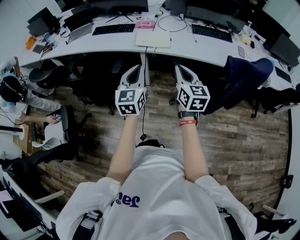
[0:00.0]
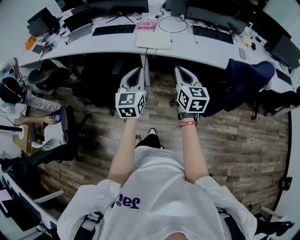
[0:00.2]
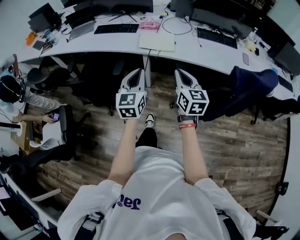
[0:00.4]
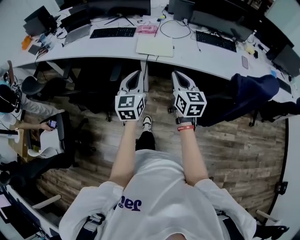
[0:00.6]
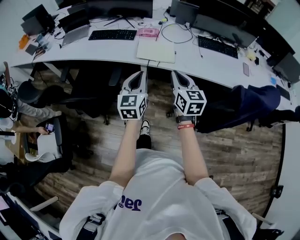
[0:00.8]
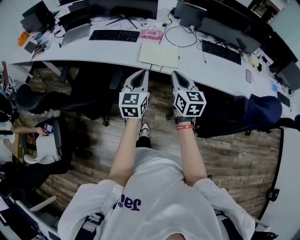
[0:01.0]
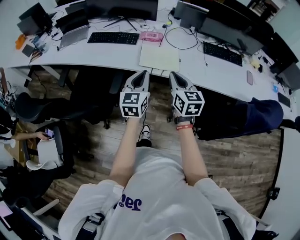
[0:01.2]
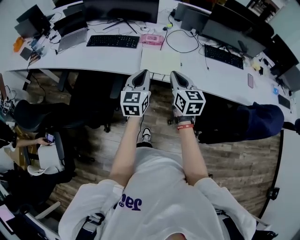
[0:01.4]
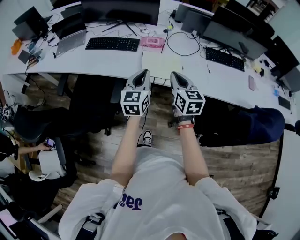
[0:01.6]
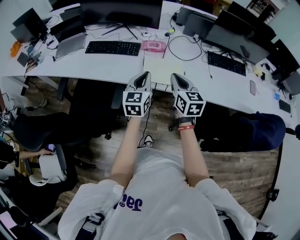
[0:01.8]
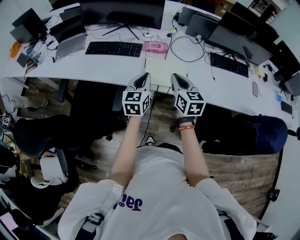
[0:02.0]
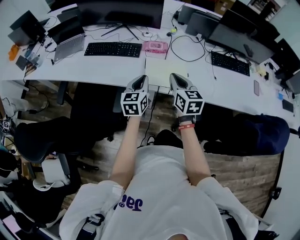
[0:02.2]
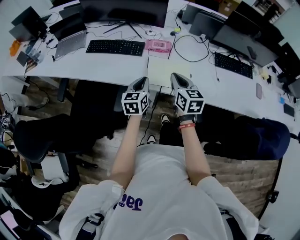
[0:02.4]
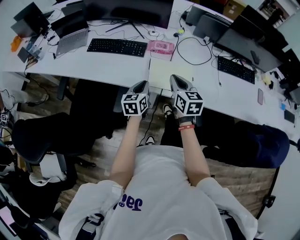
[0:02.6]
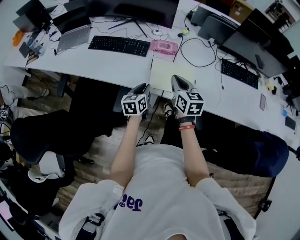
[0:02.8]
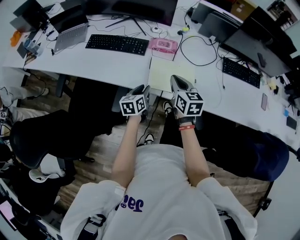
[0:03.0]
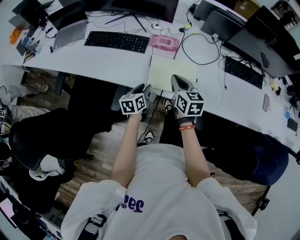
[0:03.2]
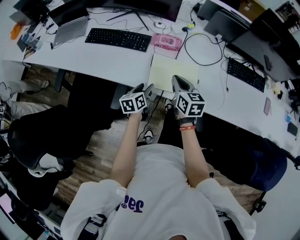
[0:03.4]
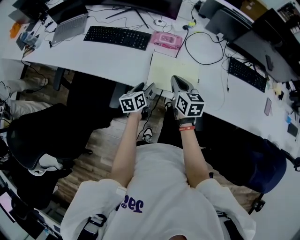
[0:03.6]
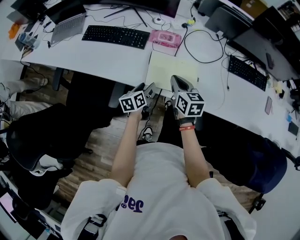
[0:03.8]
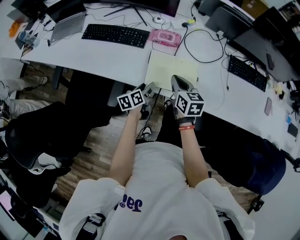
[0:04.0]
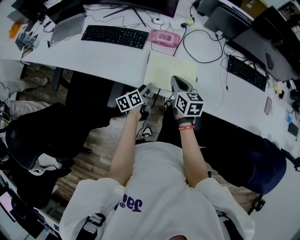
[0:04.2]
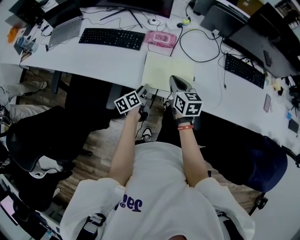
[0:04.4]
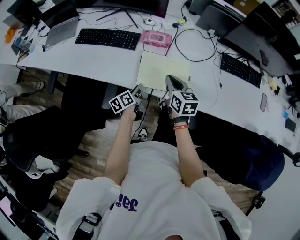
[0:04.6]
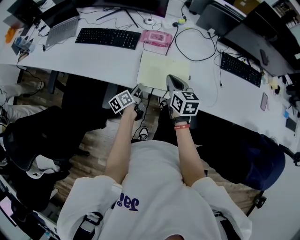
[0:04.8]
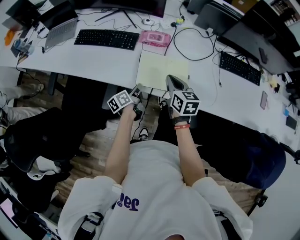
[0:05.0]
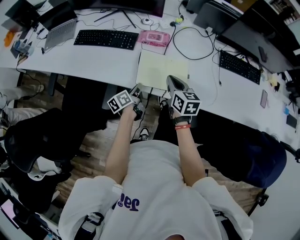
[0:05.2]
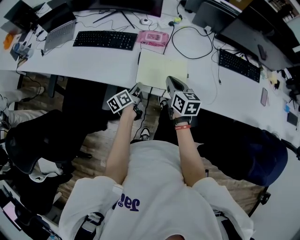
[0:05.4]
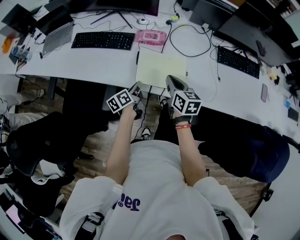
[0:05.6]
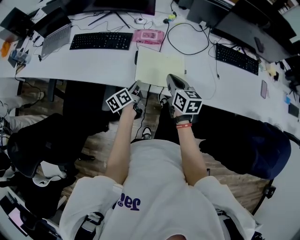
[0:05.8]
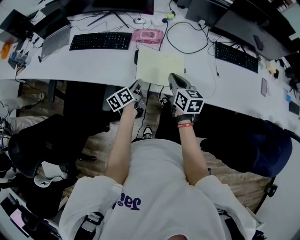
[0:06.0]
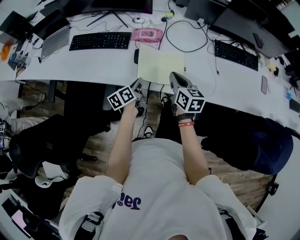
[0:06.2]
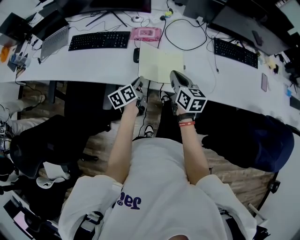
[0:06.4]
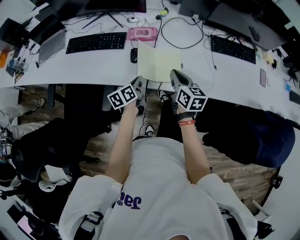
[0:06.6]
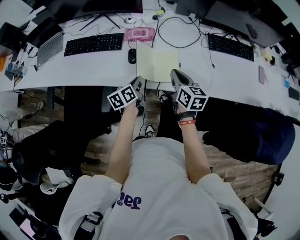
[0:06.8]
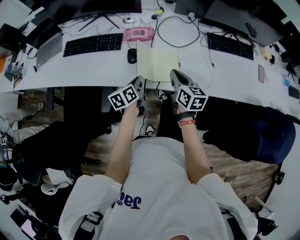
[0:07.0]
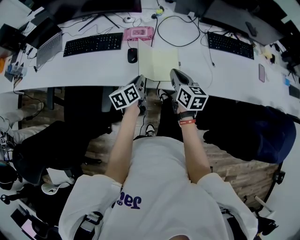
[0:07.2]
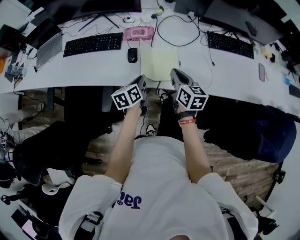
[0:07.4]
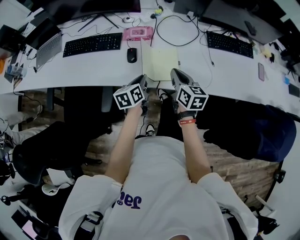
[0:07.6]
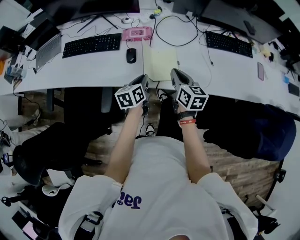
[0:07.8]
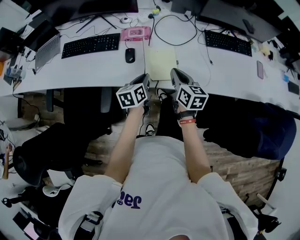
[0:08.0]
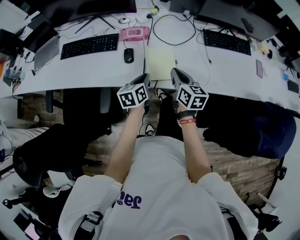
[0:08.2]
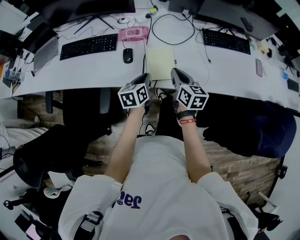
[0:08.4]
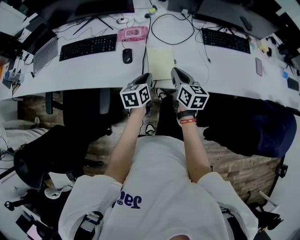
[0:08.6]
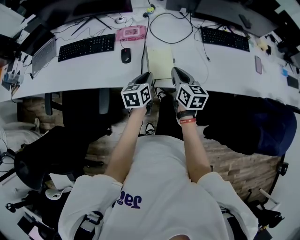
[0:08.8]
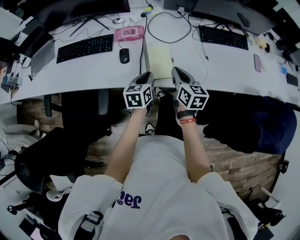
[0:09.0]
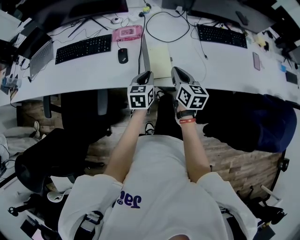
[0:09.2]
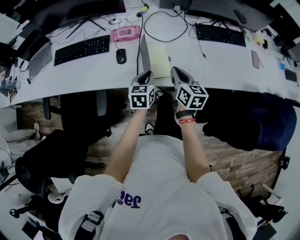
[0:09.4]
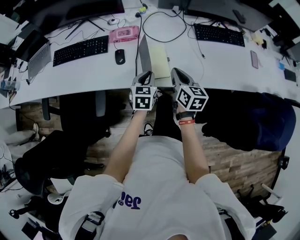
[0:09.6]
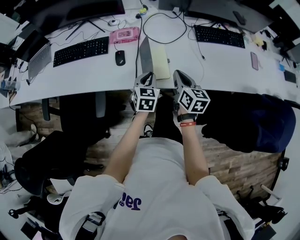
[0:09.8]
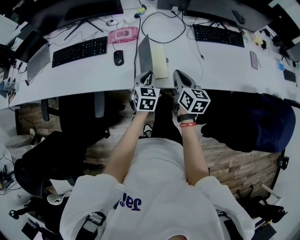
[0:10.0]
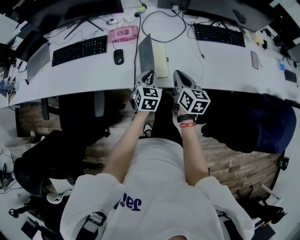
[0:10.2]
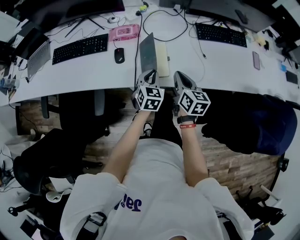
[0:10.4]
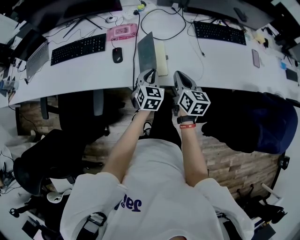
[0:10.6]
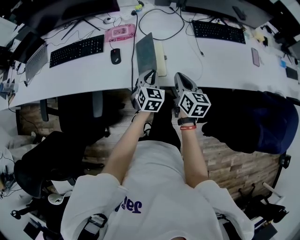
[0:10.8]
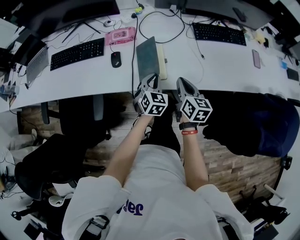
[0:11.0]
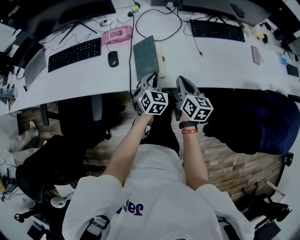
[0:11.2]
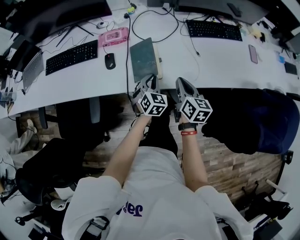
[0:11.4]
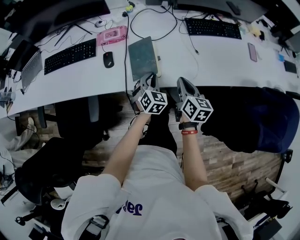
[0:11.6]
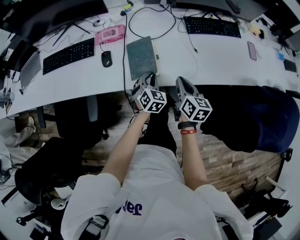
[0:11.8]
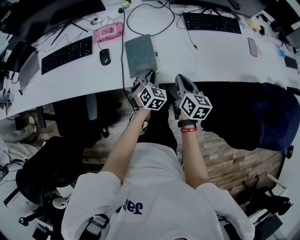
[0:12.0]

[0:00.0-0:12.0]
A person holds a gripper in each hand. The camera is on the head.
0:00.0 to 0:01.6: Both grippers move forward, roughly 40 cm.
0:01.6 to 0:03.0: The right gripper travels forward and downward by approximately 20 cm. Meanwhile the left gripper shifts approximately 25 cm downward and forward, swivels roughly 30 degrees, and opens.
0:03.0 to 0:04.4: Both grippers travel together downward, about 5 cm. The left gripper swivels roughly 30 degrees, and opens, then closes again.
0:04.4 to 0:06.0: The right gripper moves roughly 5 cm. Meanwhile the left gripper closes its fingers.
0:06.0 to 0:07.6: The left gripper is displaced to the right by some 5 cm, and rotates about 20 degrees.
0:07.6 to 0:09.0: The left gripper shifts about 5 cm to the right.
0:09.0 to 0:10.4: The left gripper changes place by about 5 cm, and swivels some 30 degrees.
0:10.4 to 0:12.0: The right gripper moves to the right, roughly 5 cm; the left gripper travels downward and to the right by about 10 cm.

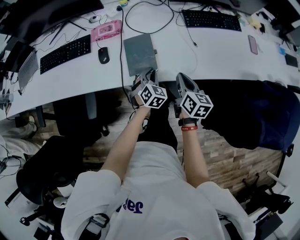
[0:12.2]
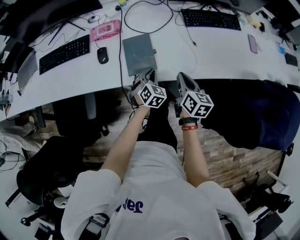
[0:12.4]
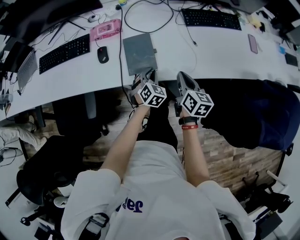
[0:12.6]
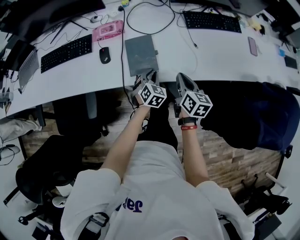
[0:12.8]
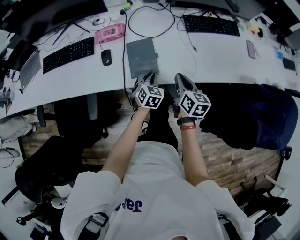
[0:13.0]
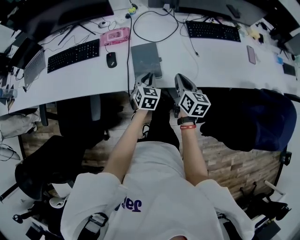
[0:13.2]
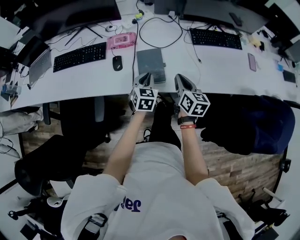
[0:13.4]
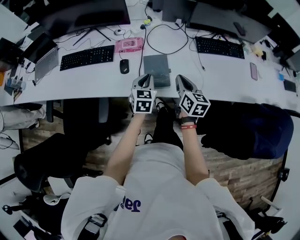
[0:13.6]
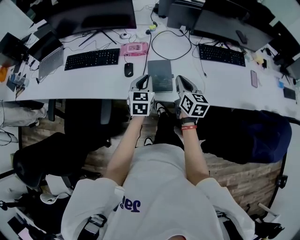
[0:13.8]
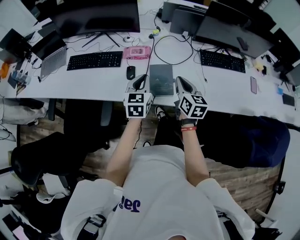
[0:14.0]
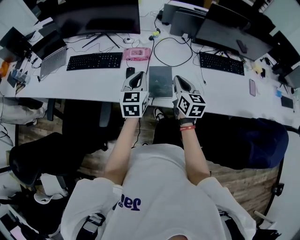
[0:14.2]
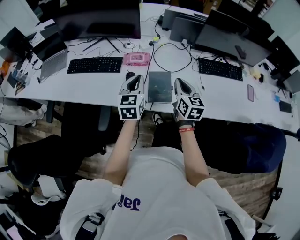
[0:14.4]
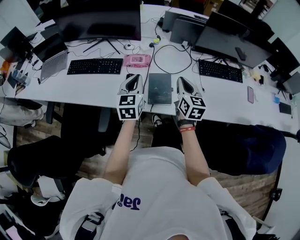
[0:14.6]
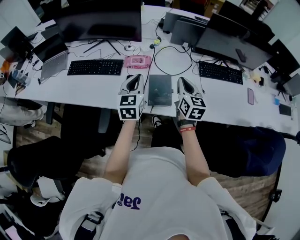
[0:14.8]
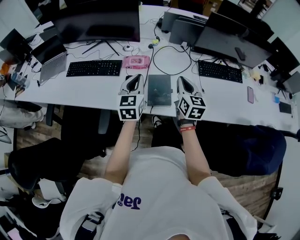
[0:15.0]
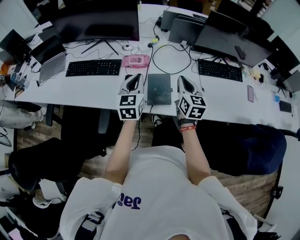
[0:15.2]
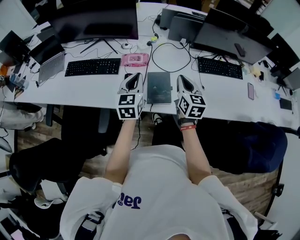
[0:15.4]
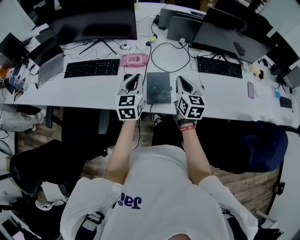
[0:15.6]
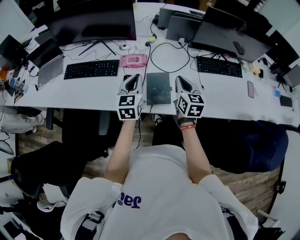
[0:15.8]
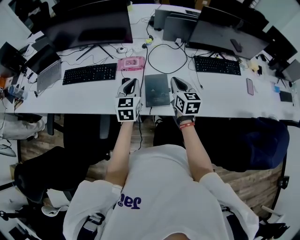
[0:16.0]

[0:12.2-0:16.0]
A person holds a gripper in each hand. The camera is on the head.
0:12.2 to 0:13.4: The right gripper is displaced upward by roughly 5 cm, while the left gripper goes some 10 cm upward and to the left, and changes its angle by some 20 degrees.
0:13.4 to 0:14.8: The right gripper shifts some 15 cm upward, forward and to the left; the left gripper goes about 20 cm upward and to the left, and rotates some 20 degrees.
0:14.8 to 0:16.0: There are only small adjustments of the grippers.

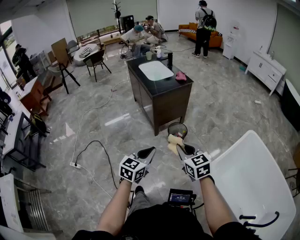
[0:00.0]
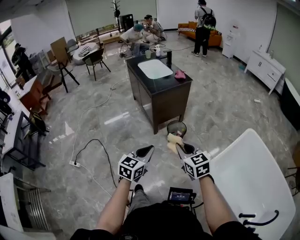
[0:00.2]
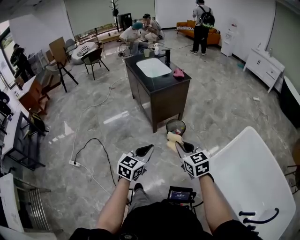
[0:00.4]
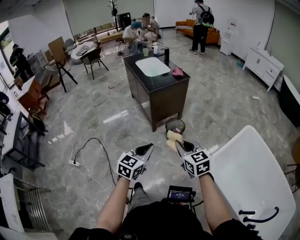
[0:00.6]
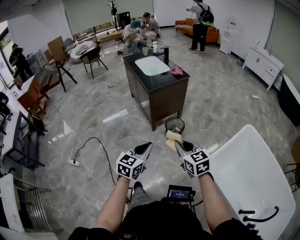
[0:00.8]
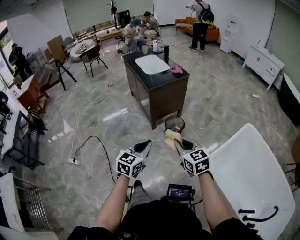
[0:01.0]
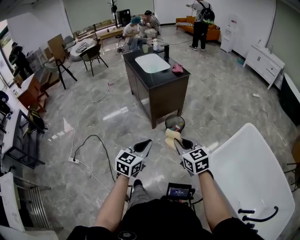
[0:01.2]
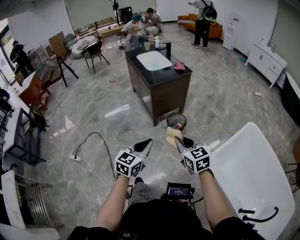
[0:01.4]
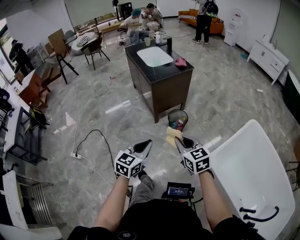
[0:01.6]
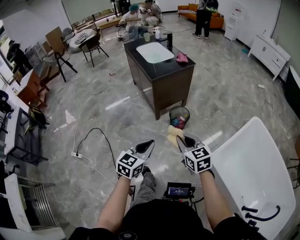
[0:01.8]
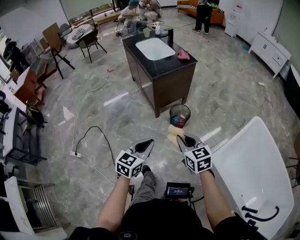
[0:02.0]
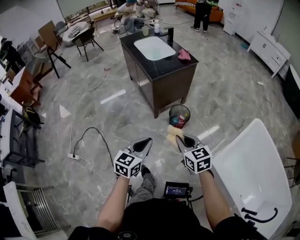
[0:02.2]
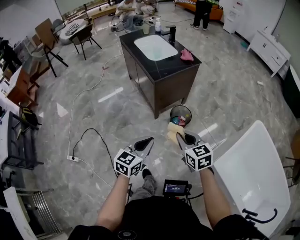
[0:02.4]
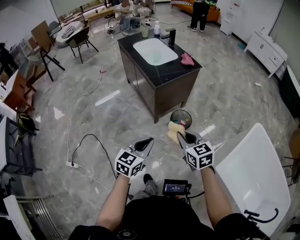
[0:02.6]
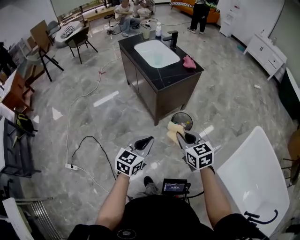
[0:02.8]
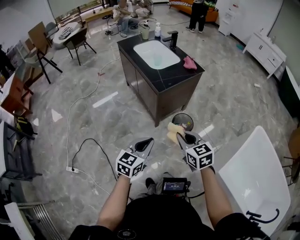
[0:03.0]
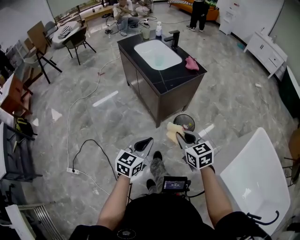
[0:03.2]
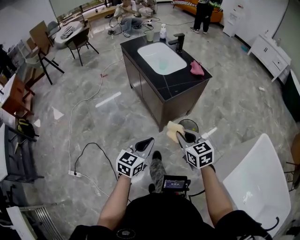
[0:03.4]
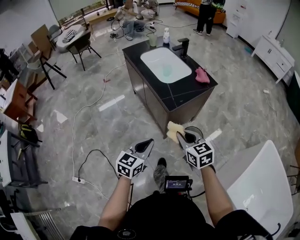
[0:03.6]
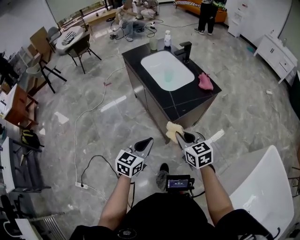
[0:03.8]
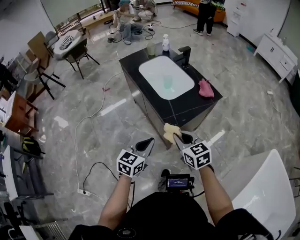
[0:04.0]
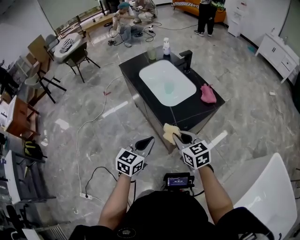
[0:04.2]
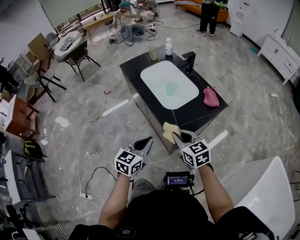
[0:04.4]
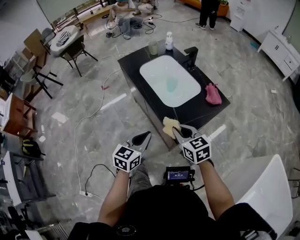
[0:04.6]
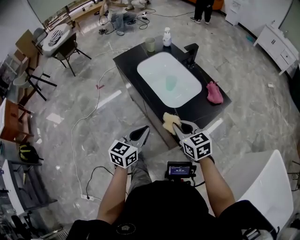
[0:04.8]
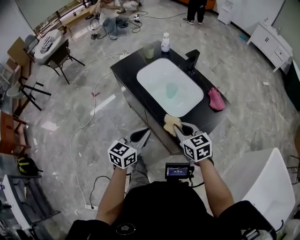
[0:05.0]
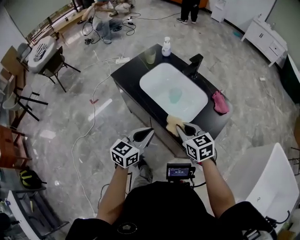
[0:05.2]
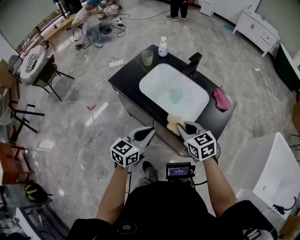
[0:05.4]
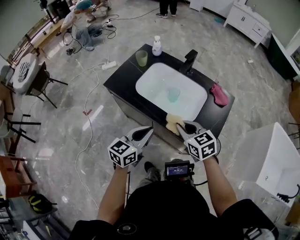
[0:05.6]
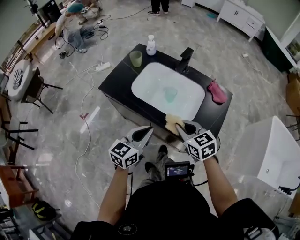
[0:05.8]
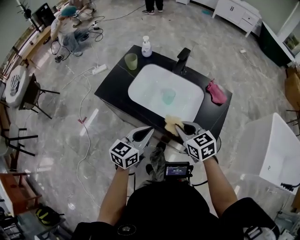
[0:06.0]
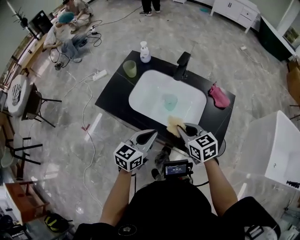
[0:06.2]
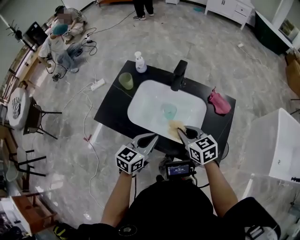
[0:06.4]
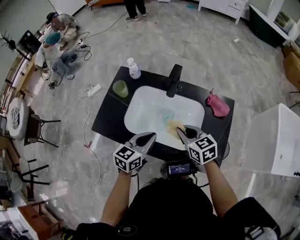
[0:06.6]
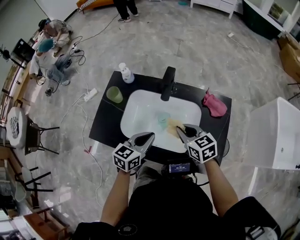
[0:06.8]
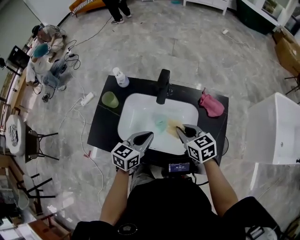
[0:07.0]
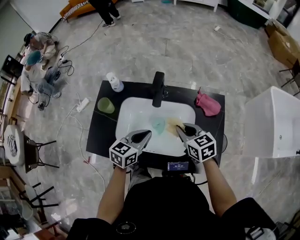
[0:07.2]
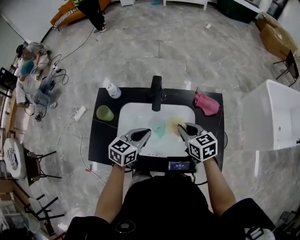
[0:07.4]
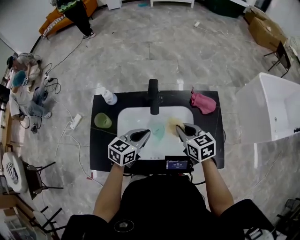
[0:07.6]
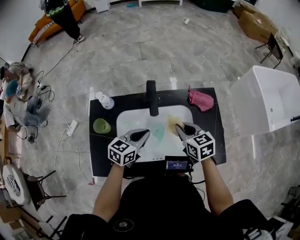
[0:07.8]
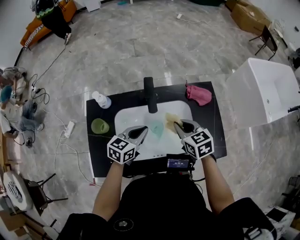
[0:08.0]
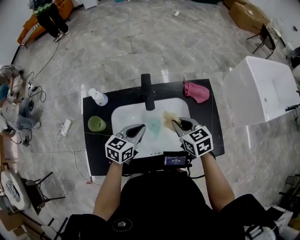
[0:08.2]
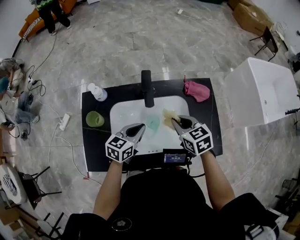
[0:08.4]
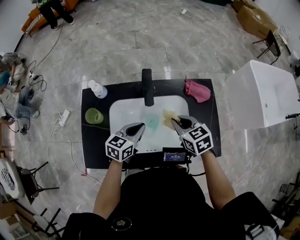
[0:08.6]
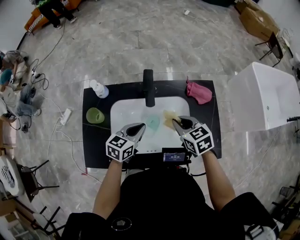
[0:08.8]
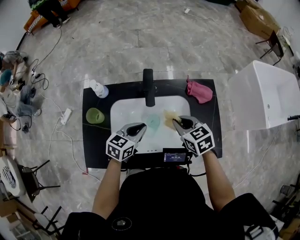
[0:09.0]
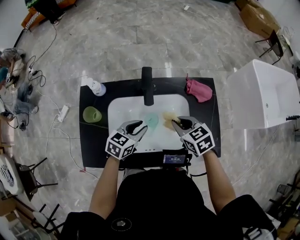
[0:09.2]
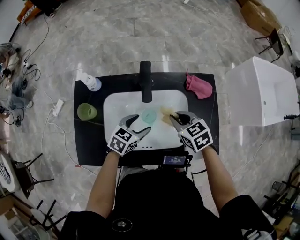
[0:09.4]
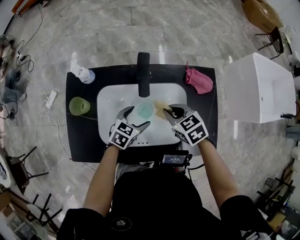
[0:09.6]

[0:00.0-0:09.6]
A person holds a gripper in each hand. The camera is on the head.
0:00.0 to 0:01.6: The grippers make only small movements.
0:01.6 to 0:03.2: Both grippers travel together forward and to the left, some 30 cm.
0:03.2 to 0:04.8: The pair of grippers is taken forward, roughly 40 cm.
0:04.8 to 0:06.4: The left gripper moves some 25 cm, and changes its angle by some 40 degrees; the right gripper moves roughly 25 cm, and turns by roughly 30 degrees.
0:06.4 to 0:08.0: The left gripper moves about 20 cm, and rotates approximately 30 degrees. The right gripper moves roughly 10 cm, and rotates approximately 30 degrees.
0:08.0 to 0:09.6: The left gripper travels downward by about 10 cm, and opens. The right gripper heads downward, covering some 5 cm, and changes its angle by about 20 degrees.
